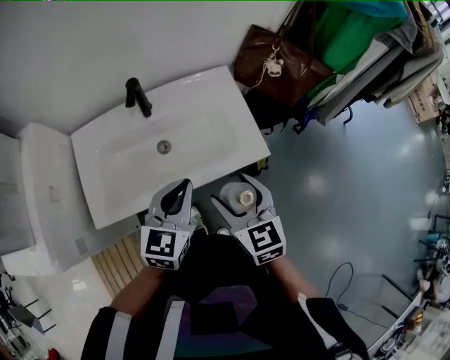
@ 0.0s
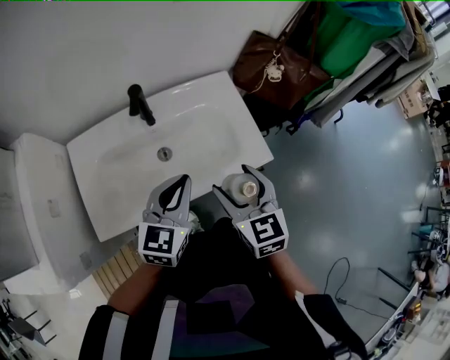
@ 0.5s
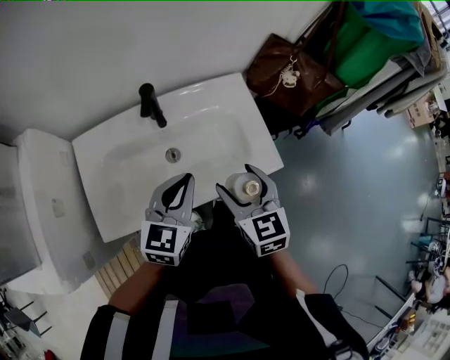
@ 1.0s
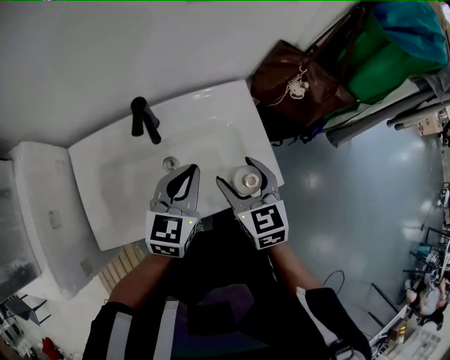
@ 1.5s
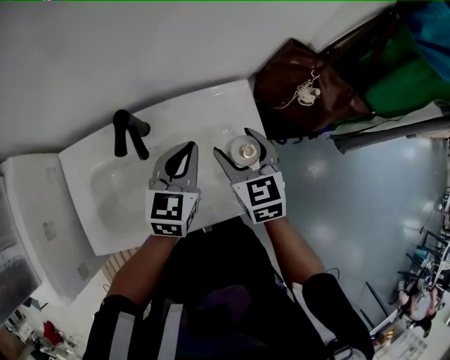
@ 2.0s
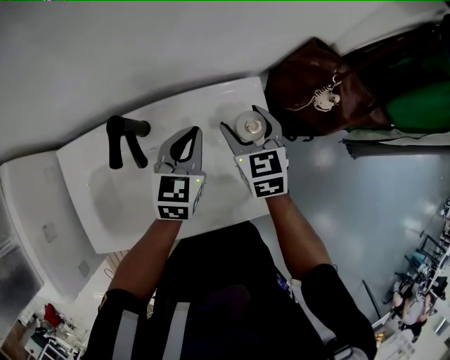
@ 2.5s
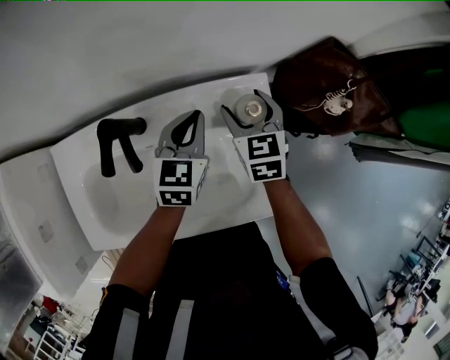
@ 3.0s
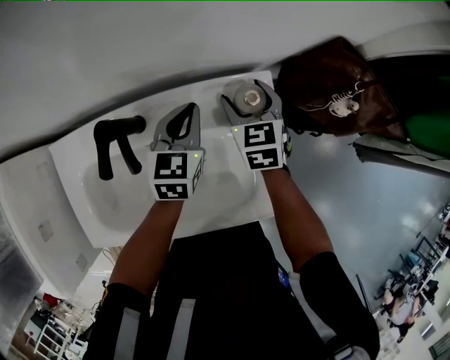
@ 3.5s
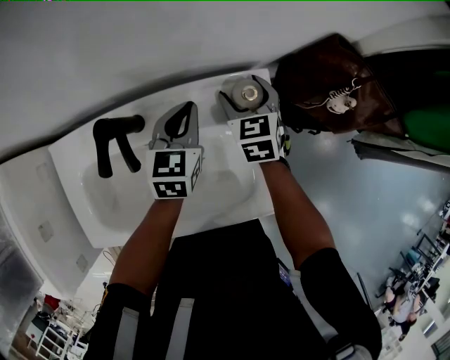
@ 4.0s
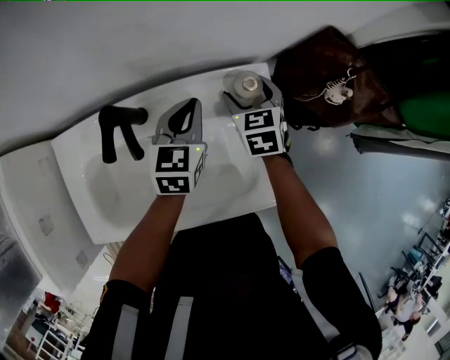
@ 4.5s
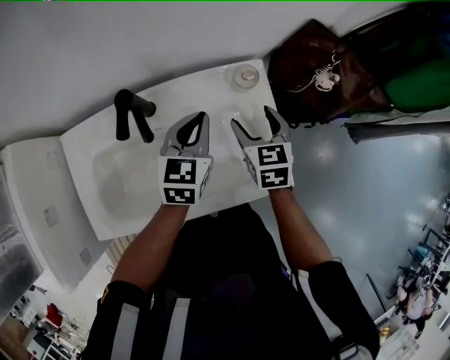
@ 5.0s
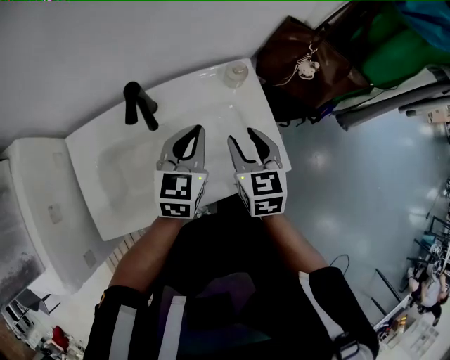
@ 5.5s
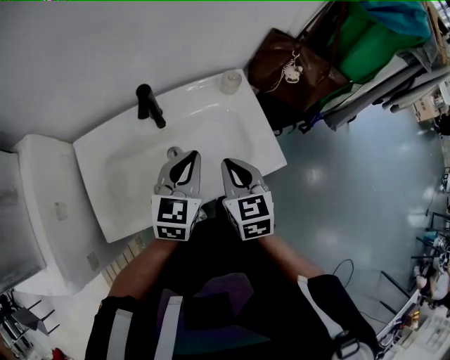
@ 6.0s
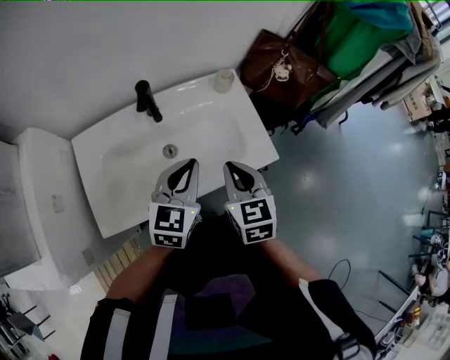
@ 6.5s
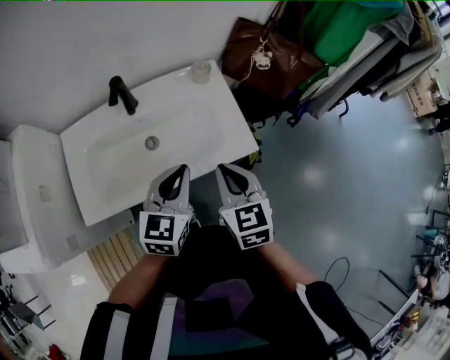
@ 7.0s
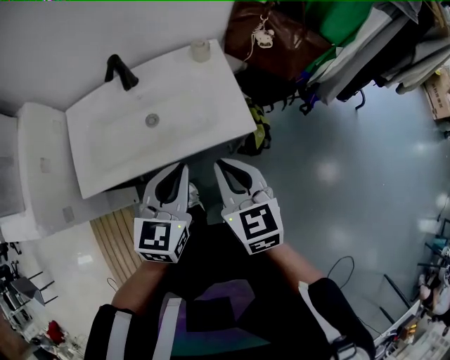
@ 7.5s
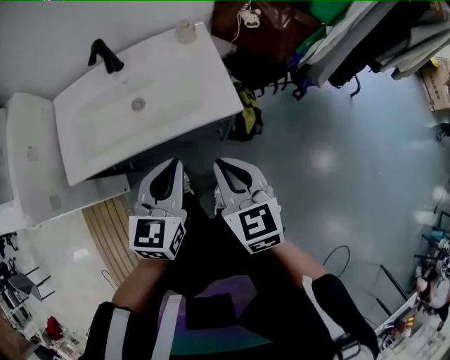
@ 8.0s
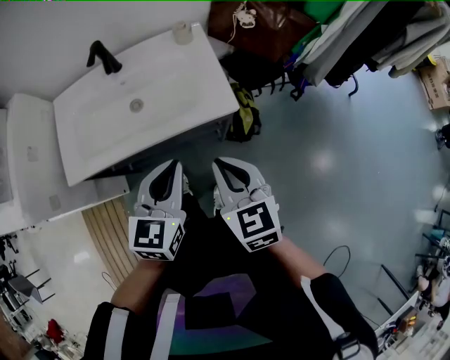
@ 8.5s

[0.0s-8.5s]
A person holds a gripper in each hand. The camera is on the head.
0.0s to 2.0s: Both grippers move forward, about 25 cm.
2.0s to 4.0s: Both grippers move forward and downward, approximately 15 cm.
4.0s to 6.5s: The two grippers go roughly 35 cm backward and upward. The right gripper closes its fingers. Meanwhile the left gripper changes its angle by about 20 degrees.
6.5s to 8.5s: The grippers both shift backward and to the right by approximately 20 cm.

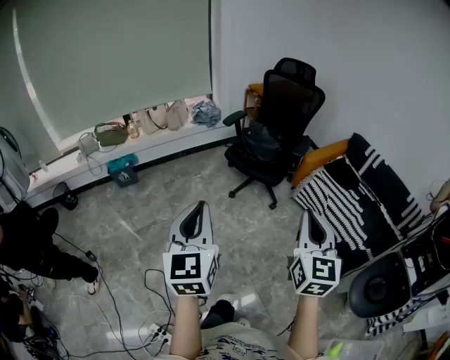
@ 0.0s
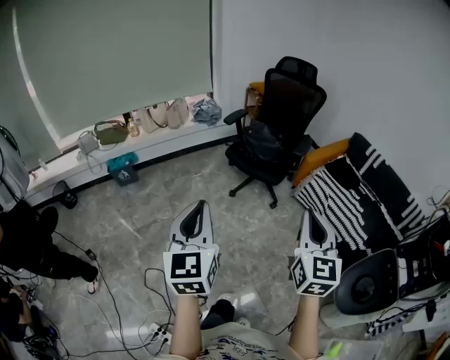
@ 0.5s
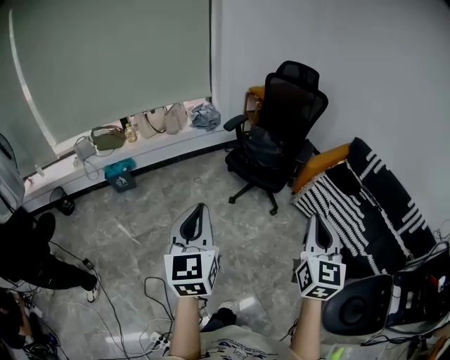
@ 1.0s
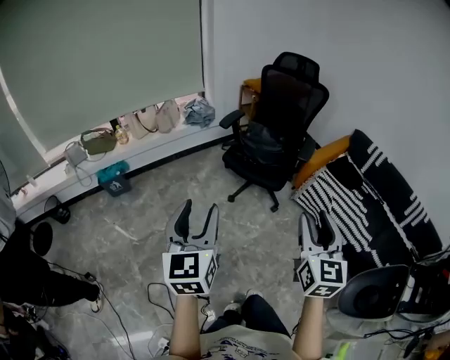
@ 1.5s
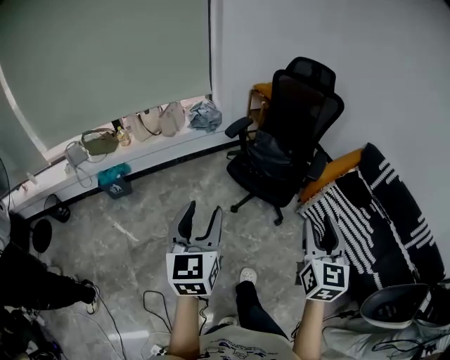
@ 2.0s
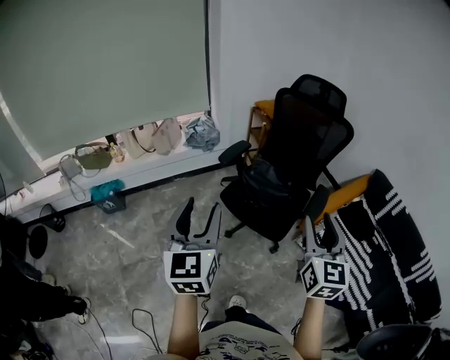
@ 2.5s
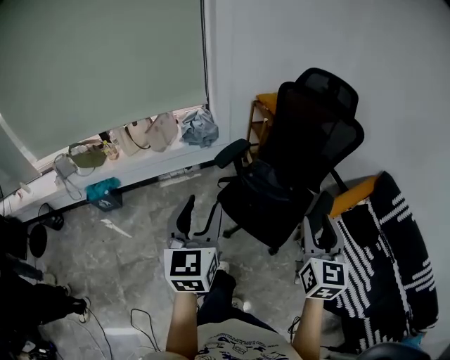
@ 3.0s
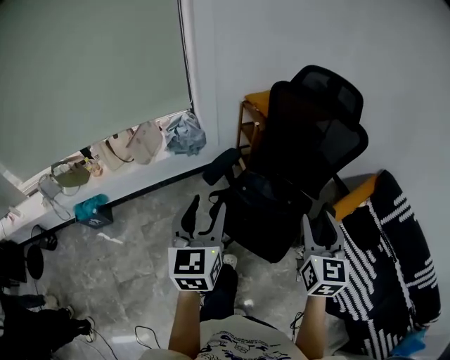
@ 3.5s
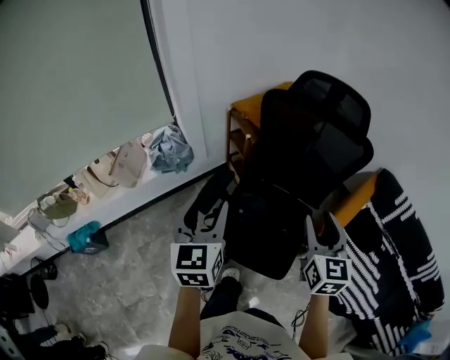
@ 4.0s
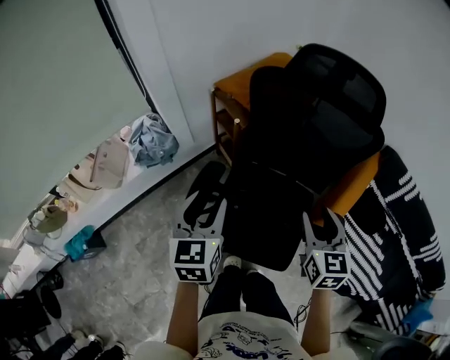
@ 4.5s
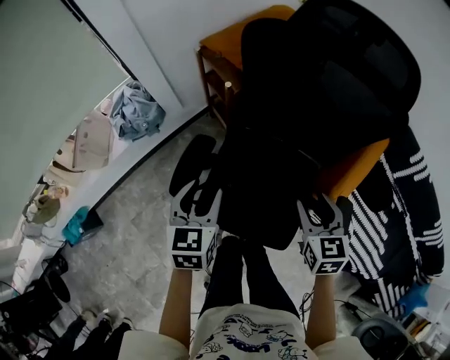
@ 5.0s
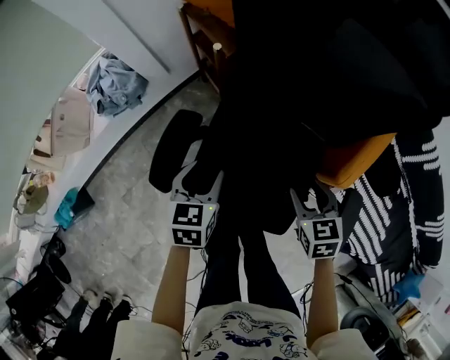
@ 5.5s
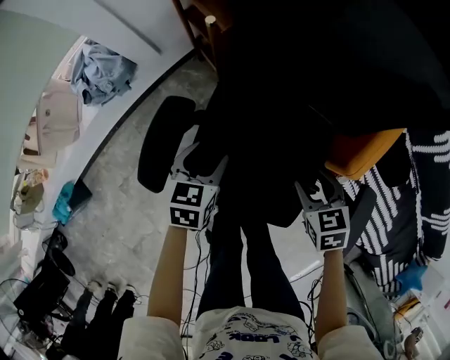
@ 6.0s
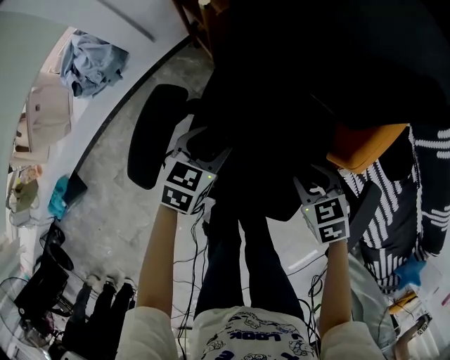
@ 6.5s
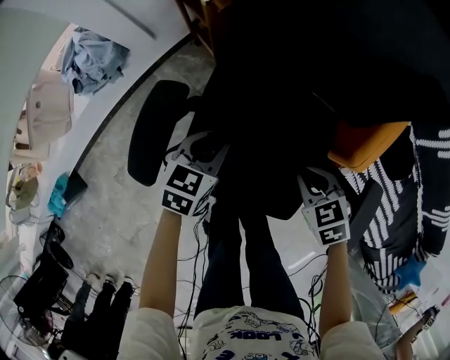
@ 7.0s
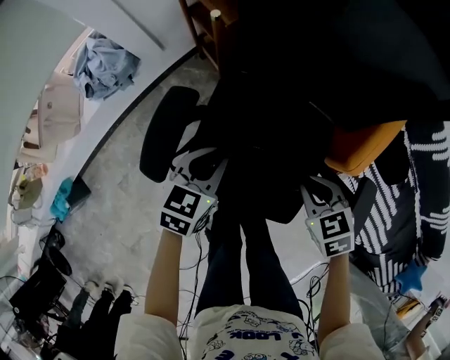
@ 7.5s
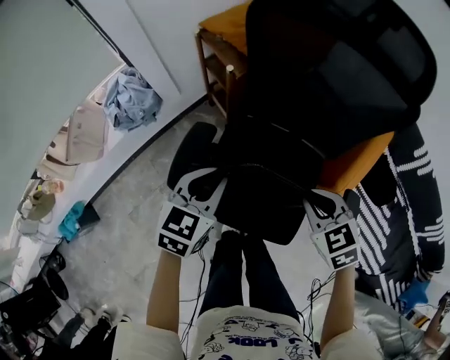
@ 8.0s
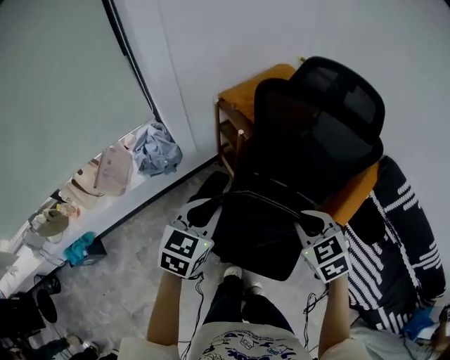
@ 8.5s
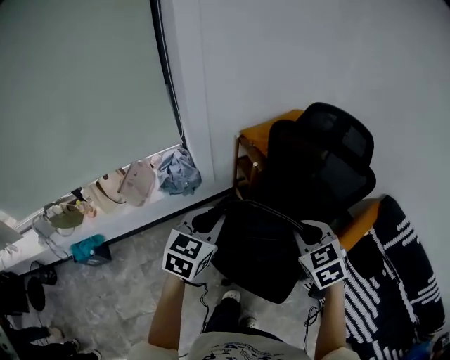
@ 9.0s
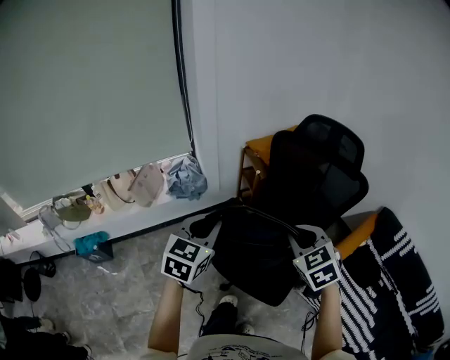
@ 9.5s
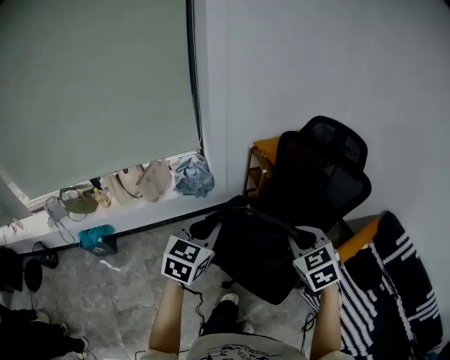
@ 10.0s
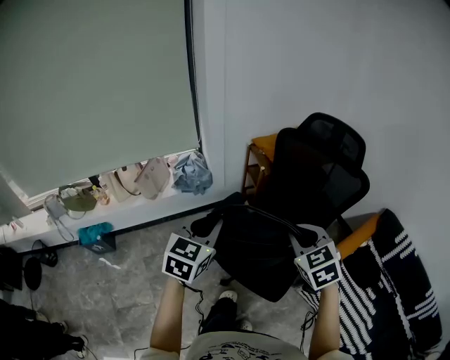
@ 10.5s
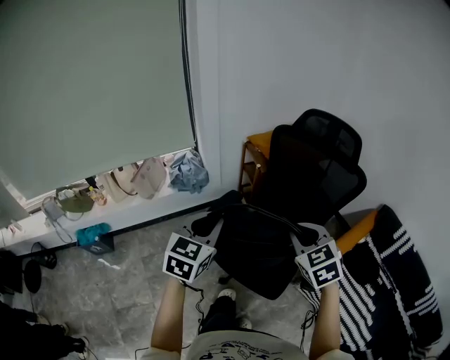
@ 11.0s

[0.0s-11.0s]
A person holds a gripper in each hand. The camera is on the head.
0.0s to 2.0s: Both grippers move forward, some 30 cm. The right gripper opens its fingers. Meanwhile the left gripper opens up.
2.0s to 3.5s: Both grippers are carried forward, approximately 50 cm.
3.5s to 5.5s: The right gripper is displaced downward and forward by about 50 cm, and points its fingers some 40 degrees further downward. Meanwhile the left gripper shifts roughly 50 cm forward and downward, and points its fingers approximately 30 degrees further downward.
5.5s to 7.5s: Both grippers move downward, about 5 cm. The right gripper closes its fingers. The left gripper closes.
7.5s to 9.0s: Both grippers travel together upward, about 40 cm. The left gripper swivels some 30 degrees. Meanwhile the right gripper changes its angle by some 30 degrees.
9.0s to 11.0s: Both grippers travel together backward, roughly 10 cm.

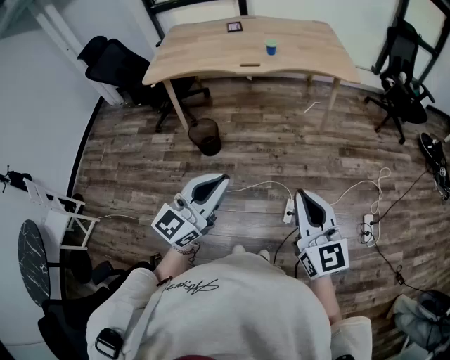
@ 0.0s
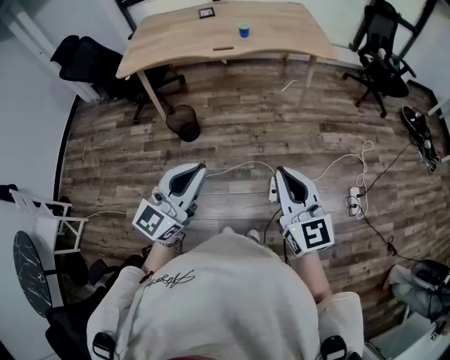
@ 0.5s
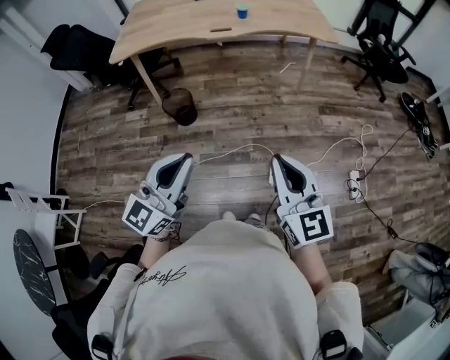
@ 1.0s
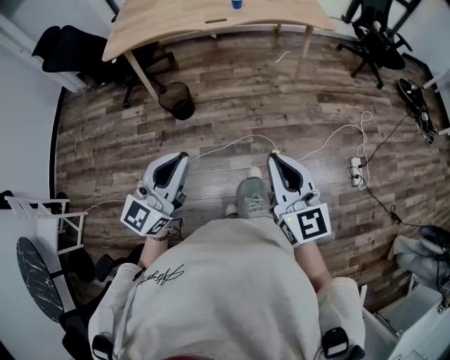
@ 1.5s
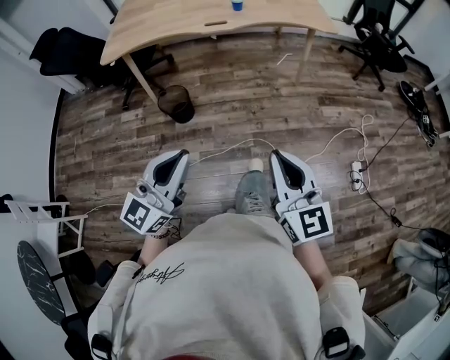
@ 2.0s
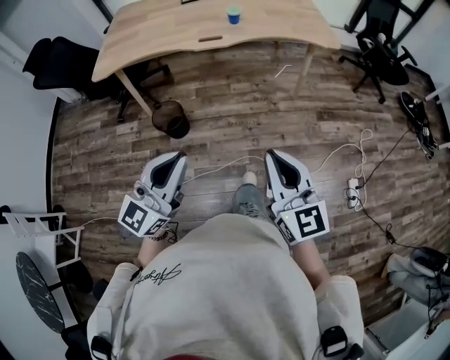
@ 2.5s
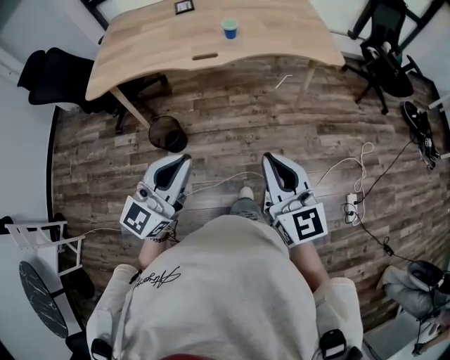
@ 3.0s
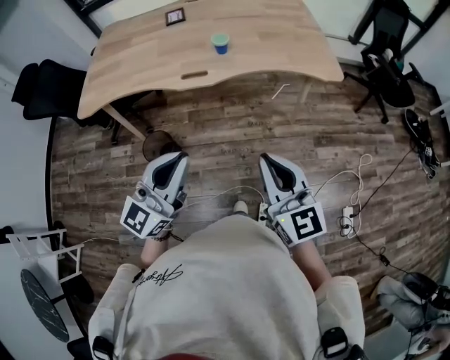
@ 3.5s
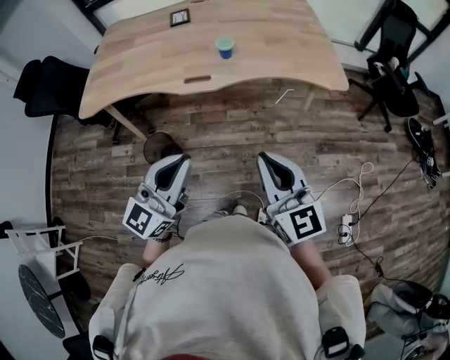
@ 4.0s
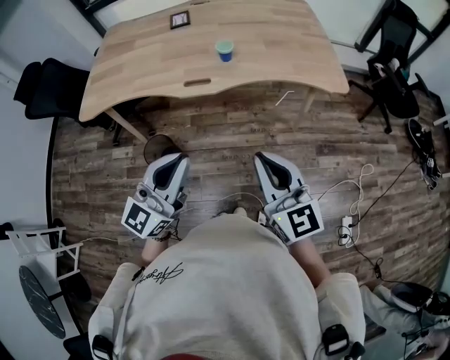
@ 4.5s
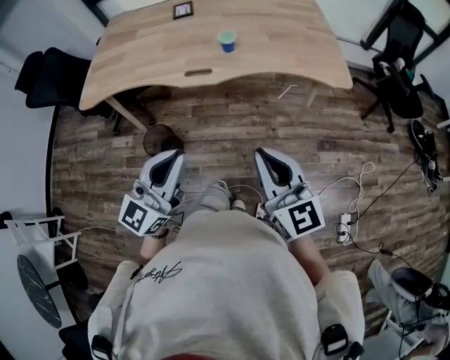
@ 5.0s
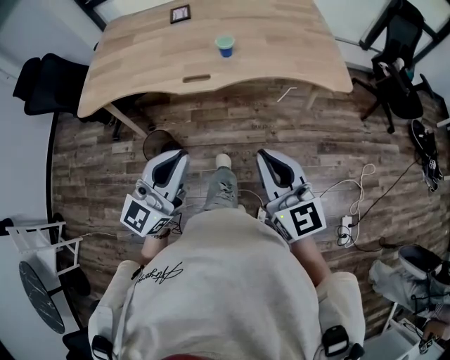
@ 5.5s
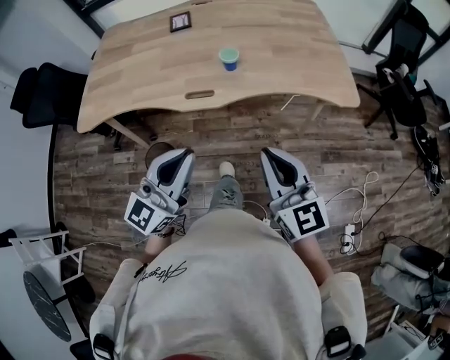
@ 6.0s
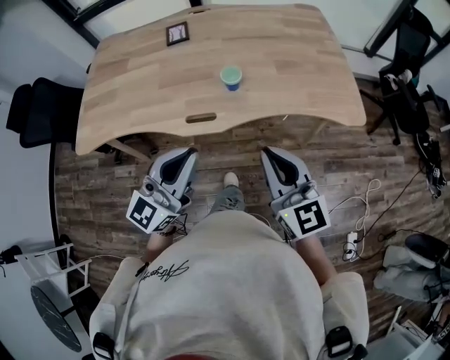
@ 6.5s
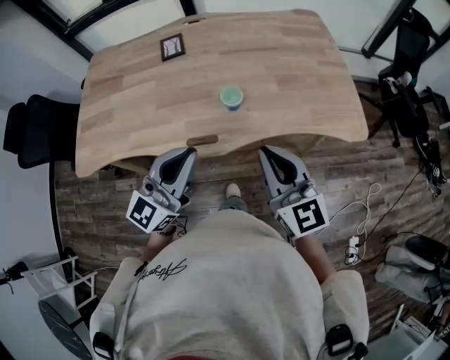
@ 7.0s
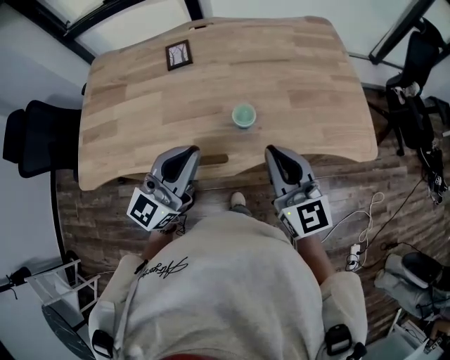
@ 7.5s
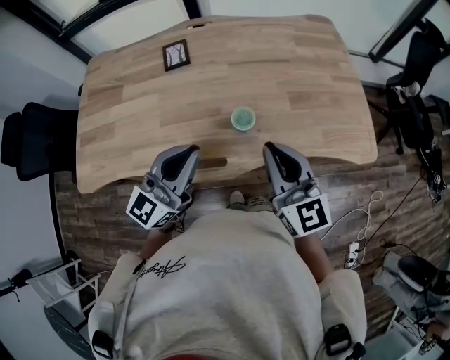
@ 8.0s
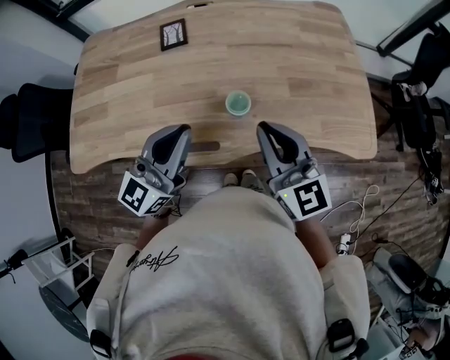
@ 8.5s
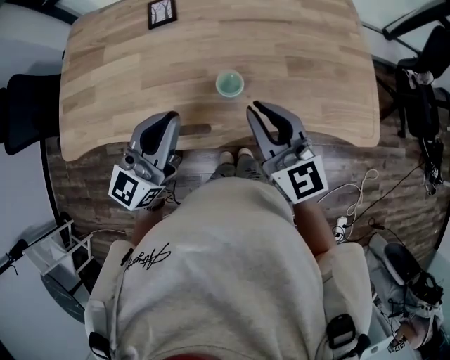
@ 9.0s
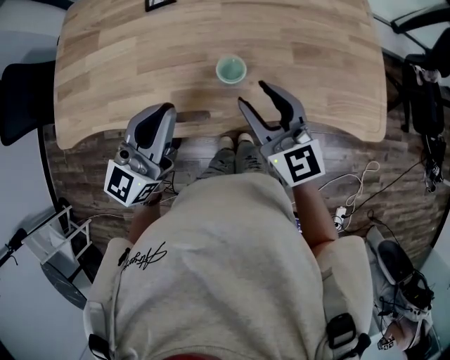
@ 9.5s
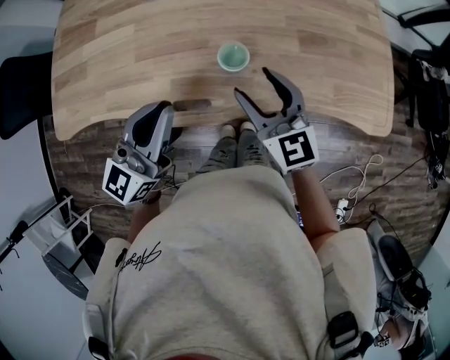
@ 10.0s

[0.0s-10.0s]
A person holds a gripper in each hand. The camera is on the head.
0.0s to 2.0s: Both grippers move to the left, about 5 cm.
2.0s to 4.0s: The grippers both shift forward by about 35 cm.
4.0s to 6.0s: The two grippers go about 10 cm forward.
6.0s to 8.0s: Both grippers move forward, about 30 cm.
8.0s to 10.0s: The right gripper travels downward and forward by approximately 15 cm, and opens its fingers, while the left gripper moves approximately 5 cm.
